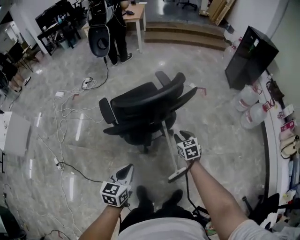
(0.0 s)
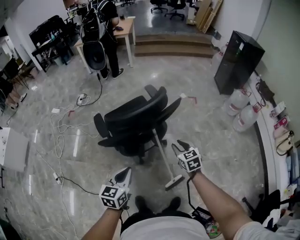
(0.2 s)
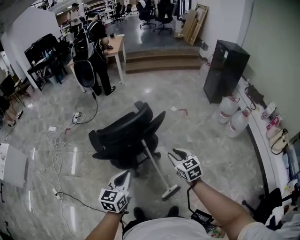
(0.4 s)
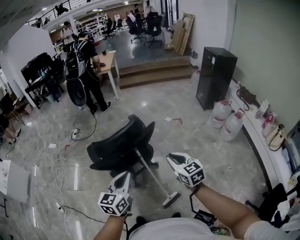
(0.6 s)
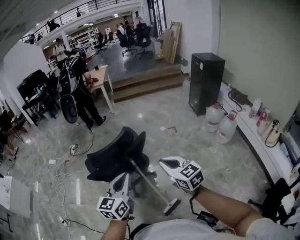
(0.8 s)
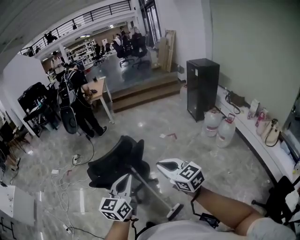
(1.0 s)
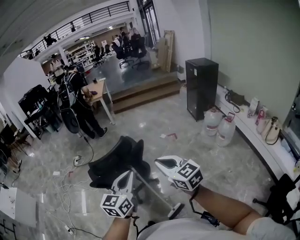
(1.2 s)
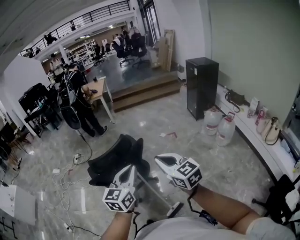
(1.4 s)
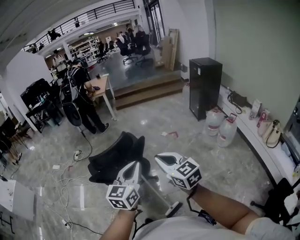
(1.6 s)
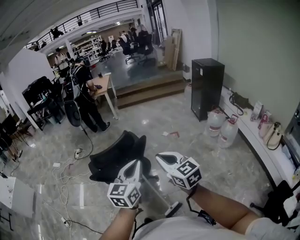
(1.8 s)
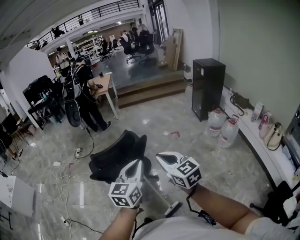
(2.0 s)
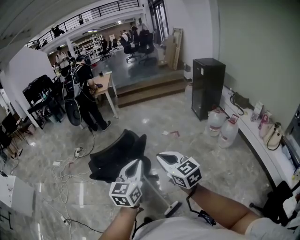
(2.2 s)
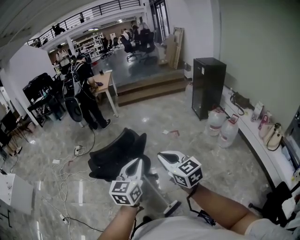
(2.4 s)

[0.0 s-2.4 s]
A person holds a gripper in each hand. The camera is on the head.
0.0 to 1.2 s: The left gripper moves upward and to the right, some 40 cm, and swivels approximately 30 degrees. Meanwhile the right gripper shifts approximately 50 cm upward and backward, tilts its fingers about 30 degrees upward, and closes up.
1.2 to 2.4 s: The grippers make only small movements.

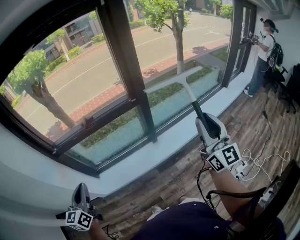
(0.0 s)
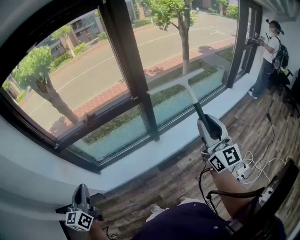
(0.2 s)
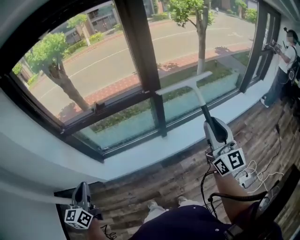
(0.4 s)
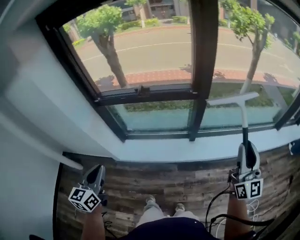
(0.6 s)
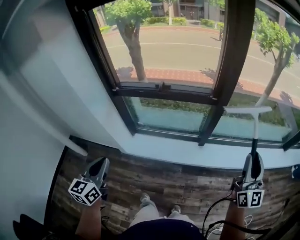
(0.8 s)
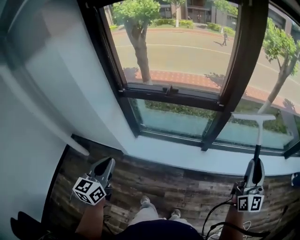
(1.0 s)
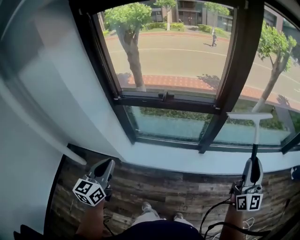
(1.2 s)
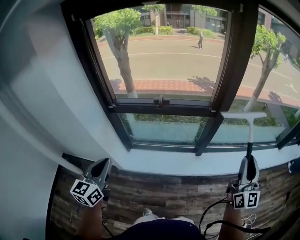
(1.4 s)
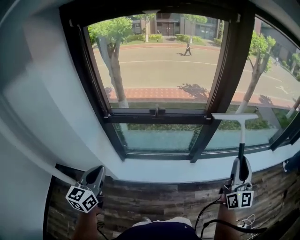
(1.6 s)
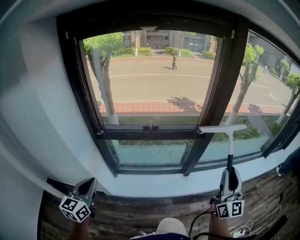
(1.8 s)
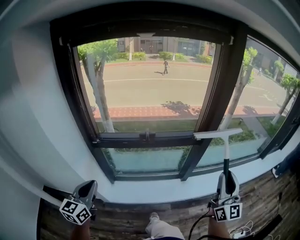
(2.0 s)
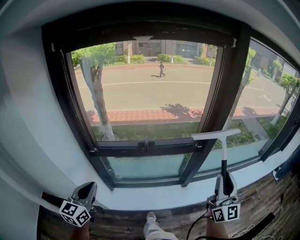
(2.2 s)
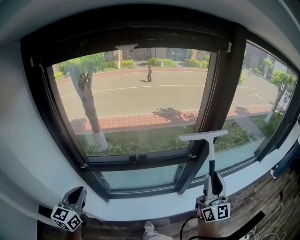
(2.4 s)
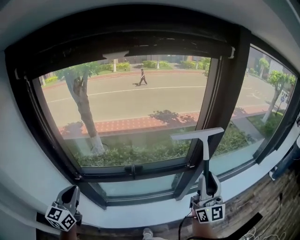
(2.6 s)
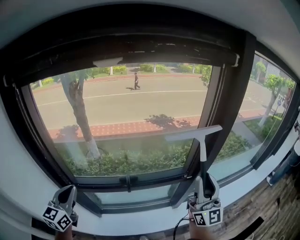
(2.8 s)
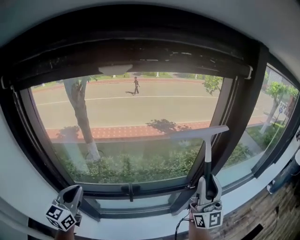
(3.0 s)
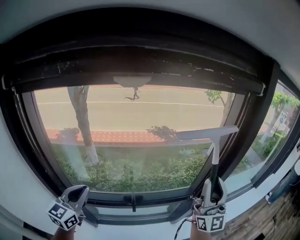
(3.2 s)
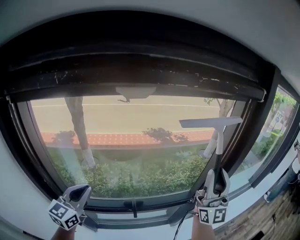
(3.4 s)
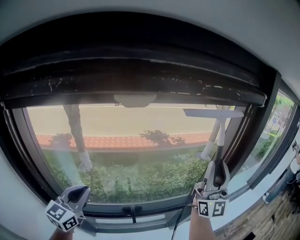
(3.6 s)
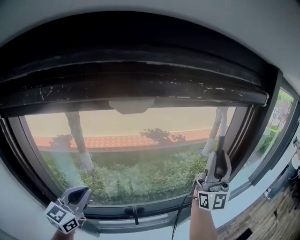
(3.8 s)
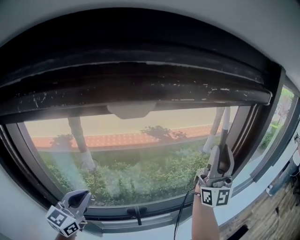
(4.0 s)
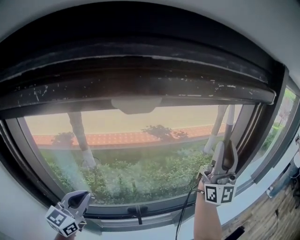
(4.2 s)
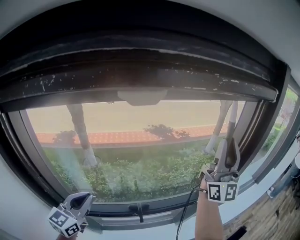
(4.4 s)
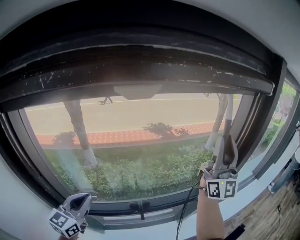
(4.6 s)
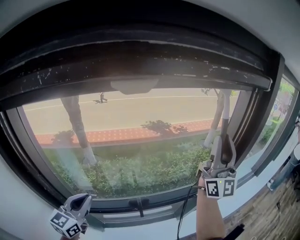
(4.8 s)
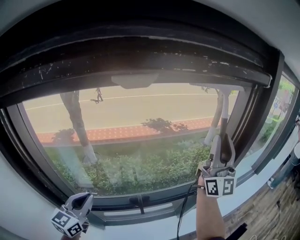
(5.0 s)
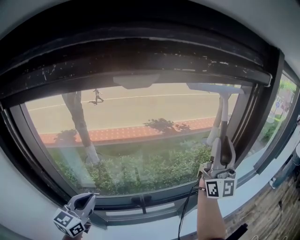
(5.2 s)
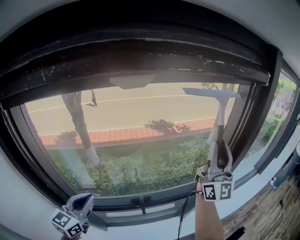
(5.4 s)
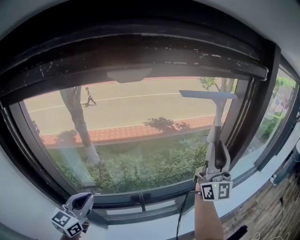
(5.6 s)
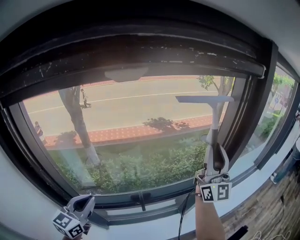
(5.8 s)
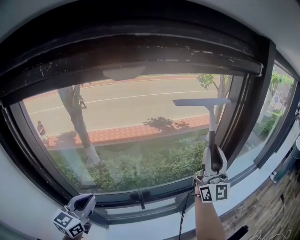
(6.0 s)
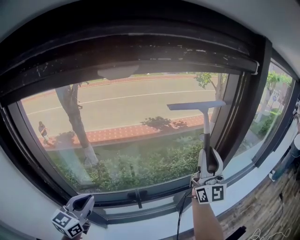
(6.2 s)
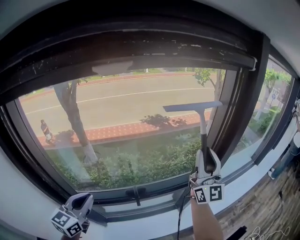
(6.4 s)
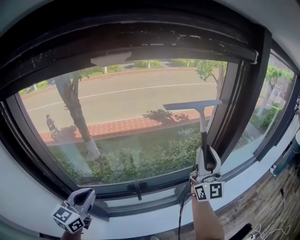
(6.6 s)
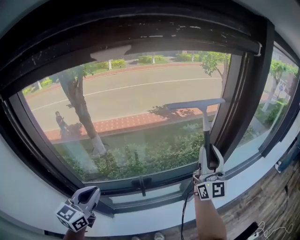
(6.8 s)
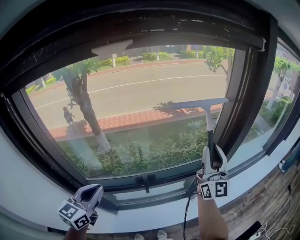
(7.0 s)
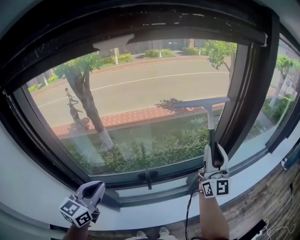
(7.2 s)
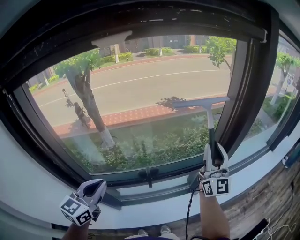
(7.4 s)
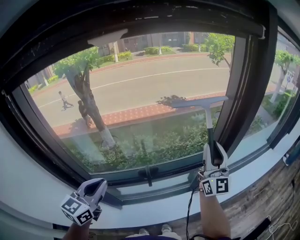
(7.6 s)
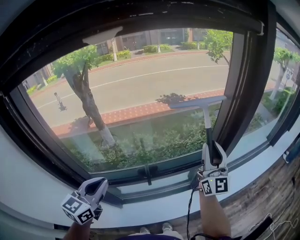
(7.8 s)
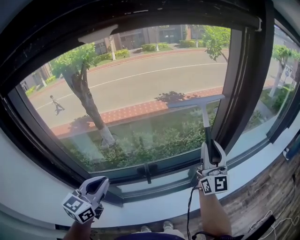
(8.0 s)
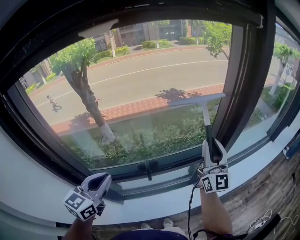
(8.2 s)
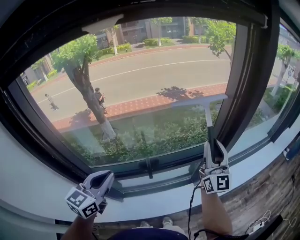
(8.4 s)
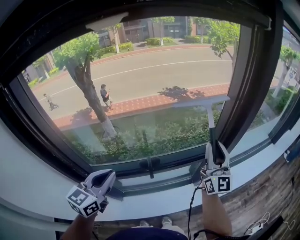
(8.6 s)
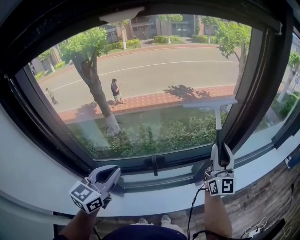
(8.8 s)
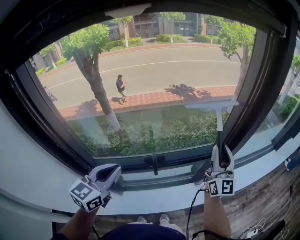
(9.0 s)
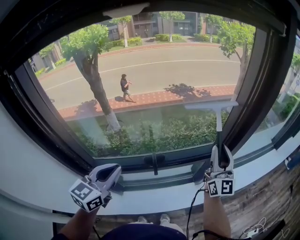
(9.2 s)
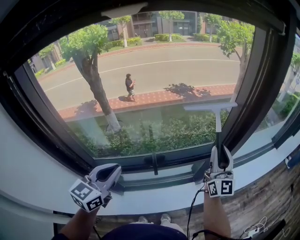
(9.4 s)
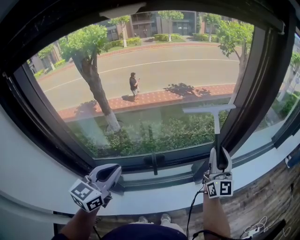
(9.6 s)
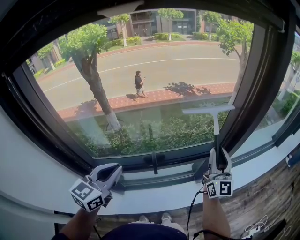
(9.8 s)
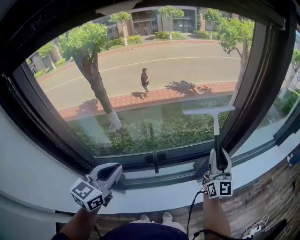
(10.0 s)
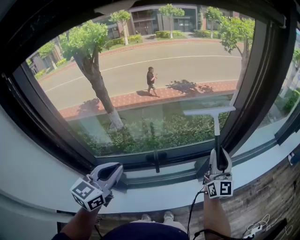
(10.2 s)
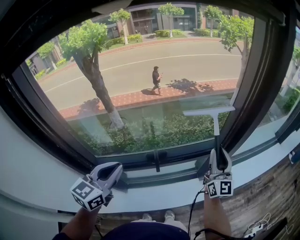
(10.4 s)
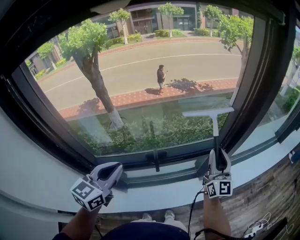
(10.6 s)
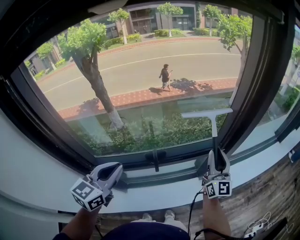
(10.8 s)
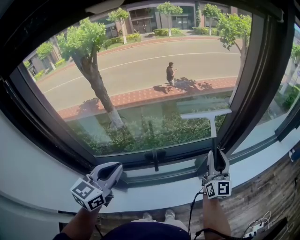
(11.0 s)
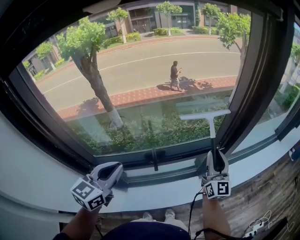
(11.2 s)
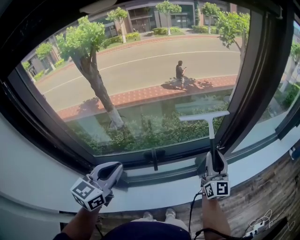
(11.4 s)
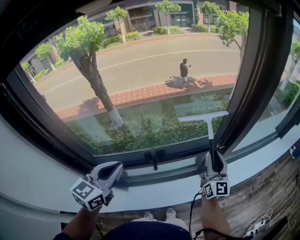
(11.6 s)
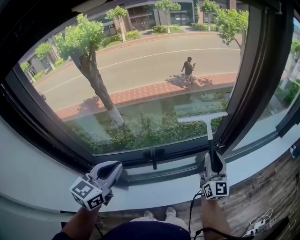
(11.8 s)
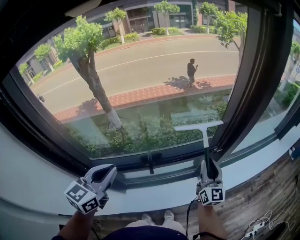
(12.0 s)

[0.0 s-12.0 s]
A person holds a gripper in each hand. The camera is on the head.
0.0 to 1.6 s: The left gripper moves to the left, some 10 cm. Meanwhile the right gripper shifts roughly 15 cm to the left and forward.
1.6 to 3.0 s: The right gripper goes approximately 30 cm forward and to the left, while the left gripper shifts about 35 cm forward.
3.0 to 4.4 s: The right gripper shifts some 20 cm upward and forward; the left gripper travels forward by some 10 cm.
4.4 to 6.0 s: The right gripper heads downward, covering some 10 cm; the left gripper ends up about 5 cm from where it was.
6.0 to 7.6 s: The right gripper moves downward, some 10 cm.
7.6 to 9.0 s: The right gripper shifts roughly 5 cm downward.
9.0 to 10.4 s: The right gripper is displaced downward by approximately 5 cm.
10.4 to 12.0 s: The right gripper heads downward, covering about 10 cm.

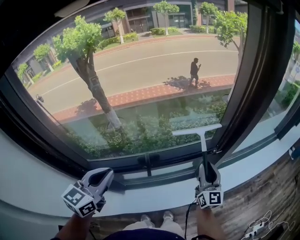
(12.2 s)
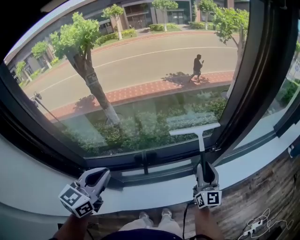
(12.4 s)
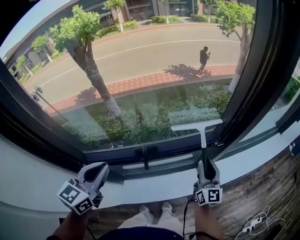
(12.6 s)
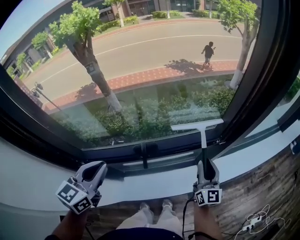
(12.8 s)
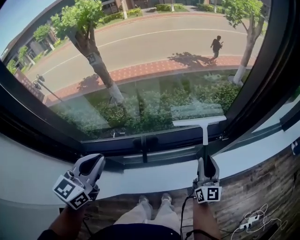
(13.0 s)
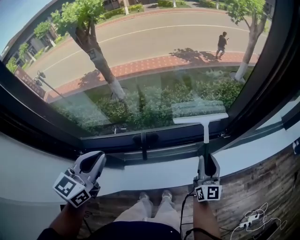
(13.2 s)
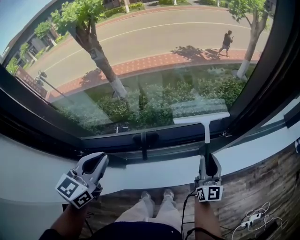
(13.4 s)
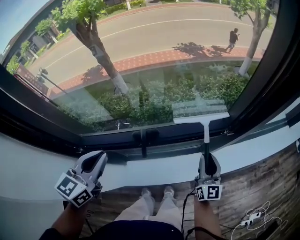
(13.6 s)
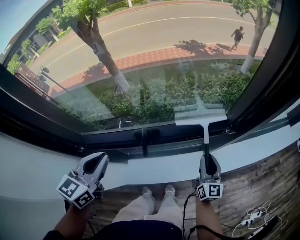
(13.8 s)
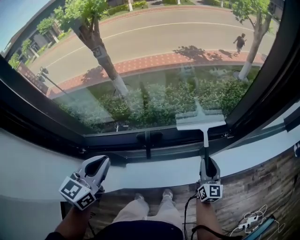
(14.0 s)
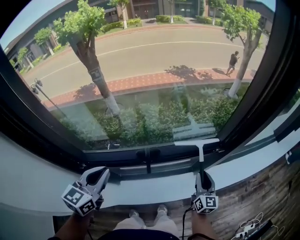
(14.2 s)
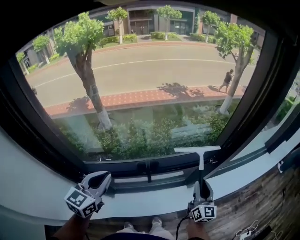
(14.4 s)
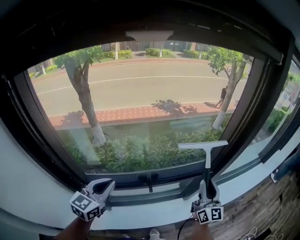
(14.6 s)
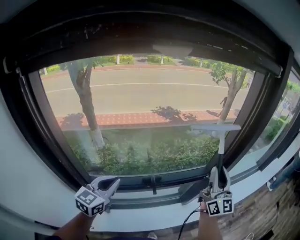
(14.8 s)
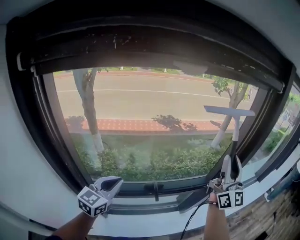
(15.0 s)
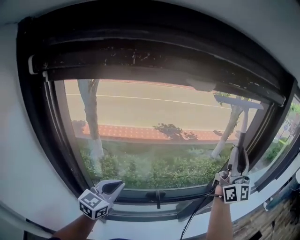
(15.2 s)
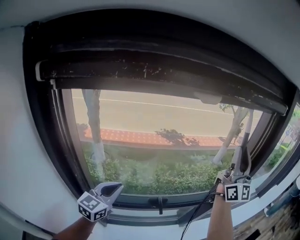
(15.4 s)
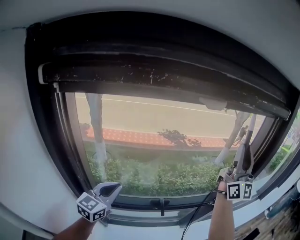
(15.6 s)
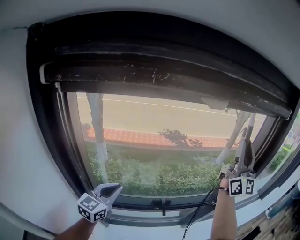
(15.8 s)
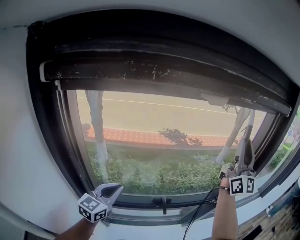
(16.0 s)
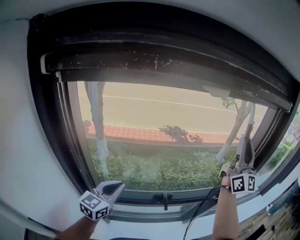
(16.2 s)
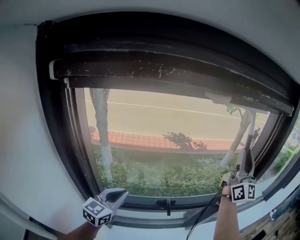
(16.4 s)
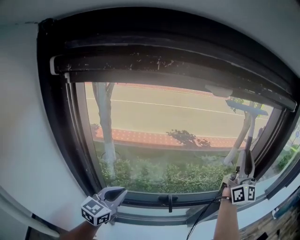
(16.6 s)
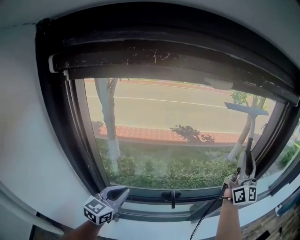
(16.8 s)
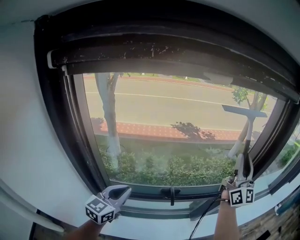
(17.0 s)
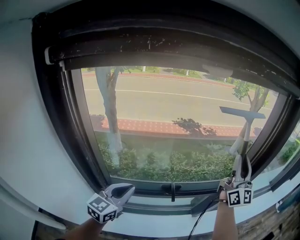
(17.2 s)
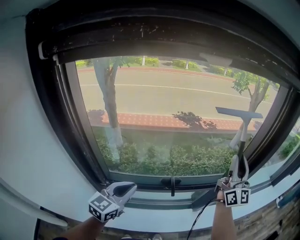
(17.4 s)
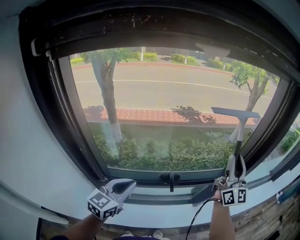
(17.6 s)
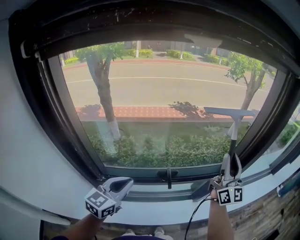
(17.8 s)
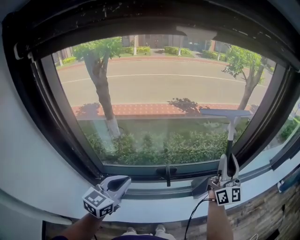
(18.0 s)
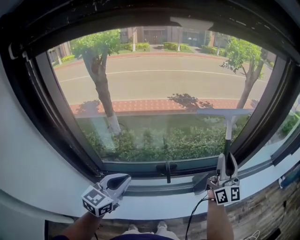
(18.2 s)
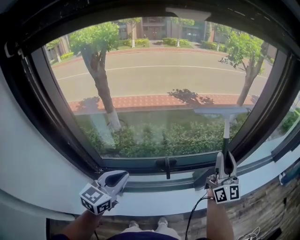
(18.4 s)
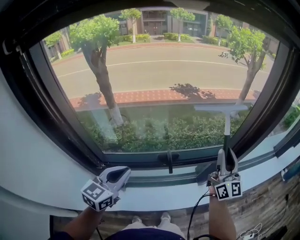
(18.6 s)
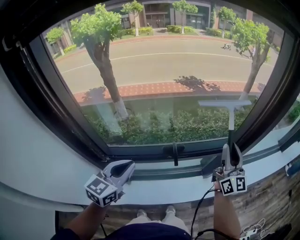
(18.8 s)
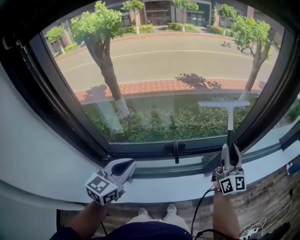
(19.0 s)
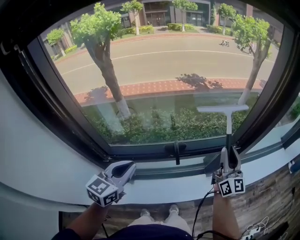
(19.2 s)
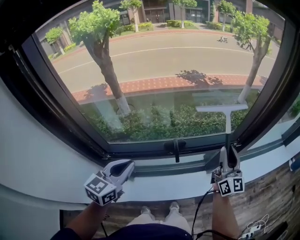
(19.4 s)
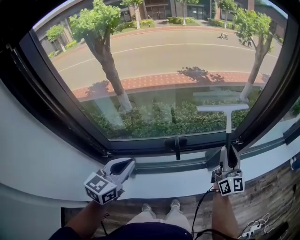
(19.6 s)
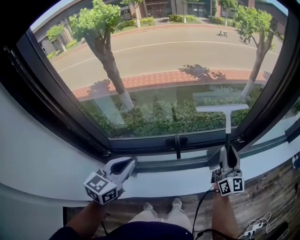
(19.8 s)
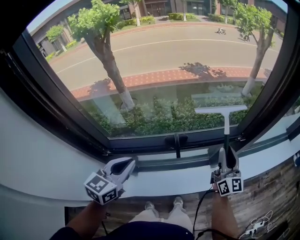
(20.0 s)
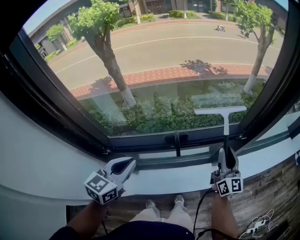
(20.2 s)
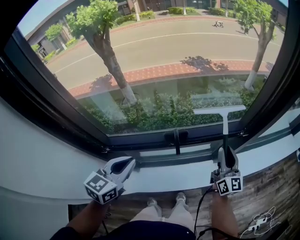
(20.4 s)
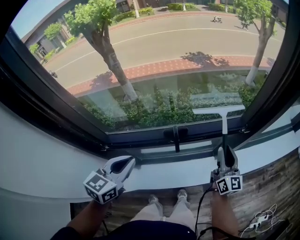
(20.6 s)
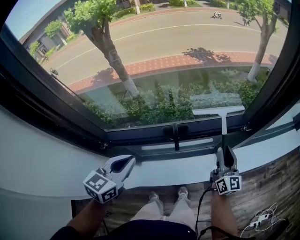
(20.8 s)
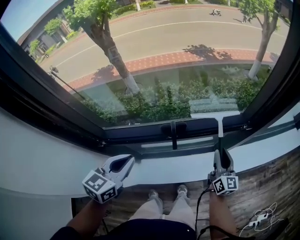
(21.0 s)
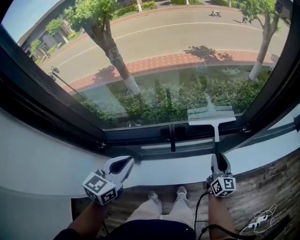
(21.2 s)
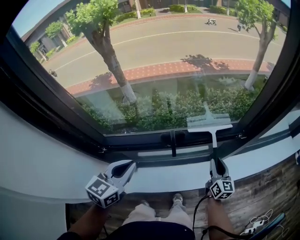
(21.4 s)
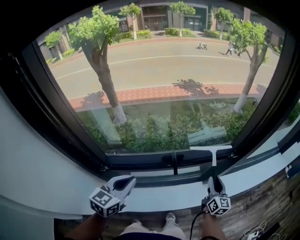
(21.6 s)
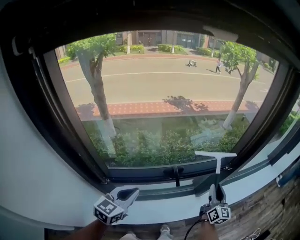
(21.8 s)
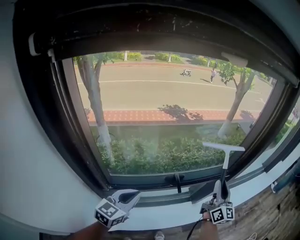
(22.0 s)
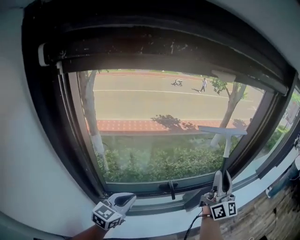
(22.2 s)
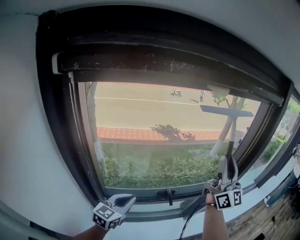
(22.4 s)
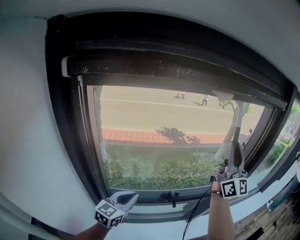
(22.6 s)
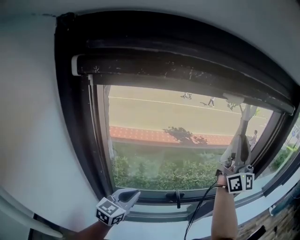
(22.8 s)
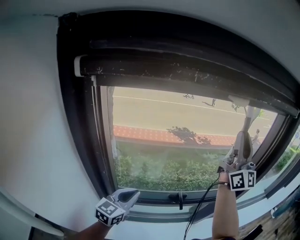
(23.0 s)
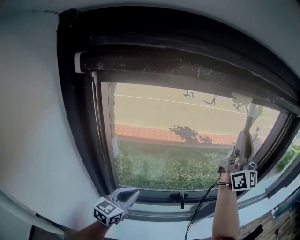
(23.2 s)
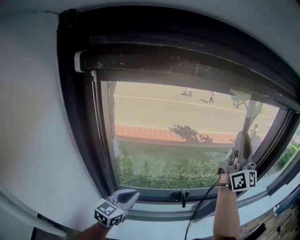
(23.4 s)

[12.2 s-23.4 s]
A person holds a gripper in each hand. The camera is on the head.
12.2 to 13.8 s: The right gripper goes some 10 cm downward.
13.8 to 15.4 s: The right gripper is displaced upward by approximately 50 cm, and tilts its fingers roughly 50 degrees upward; the left gripper heads to the left and upward, covering approximately 10 cm.
15.4 to 17.0 s: The right gripper heads downward, covering some 10 cm, while the left gripper moves backward, some 5 cm.
17.0 to 18.6 s: The left gripper ends up some 5 cm from where it was. Meanwhile the right gripper travels downward by about 20 cm.
18.6 to 20.2 s: The right gripper heads downward, covering roughly 15 cm.
20.2 to 21.8 s: The right gripper reaches approximately 15 cm downward, then returns.
21.8 to 23.4 s: The right gripper heads upward, covering about 40 cm, and tips its fingers upward by some 40 degrees; the left gripper travels upward and to the left by approximately 10 cm.
